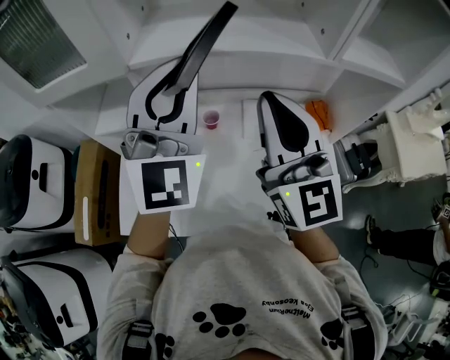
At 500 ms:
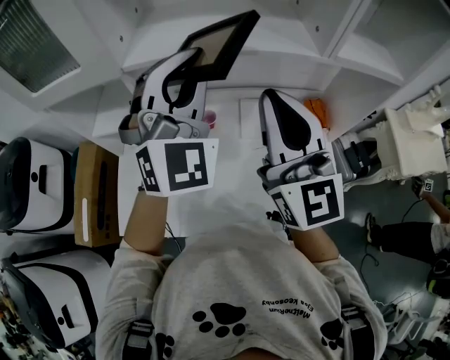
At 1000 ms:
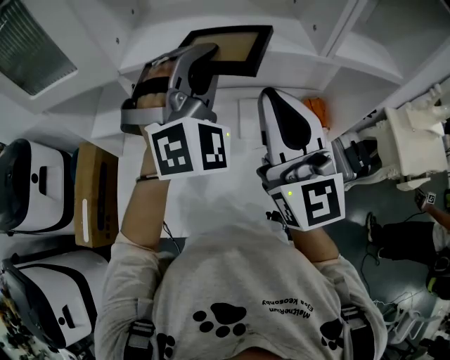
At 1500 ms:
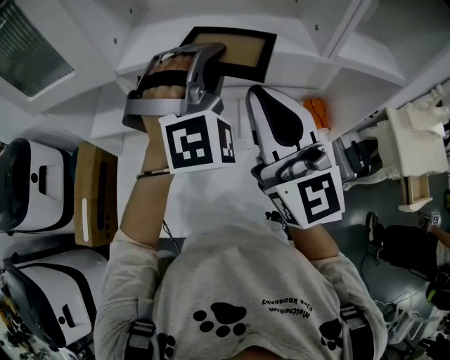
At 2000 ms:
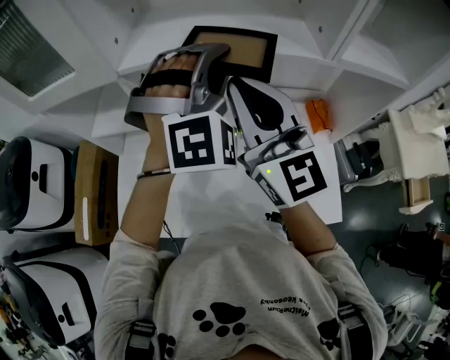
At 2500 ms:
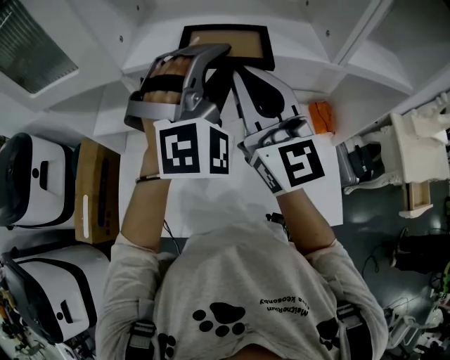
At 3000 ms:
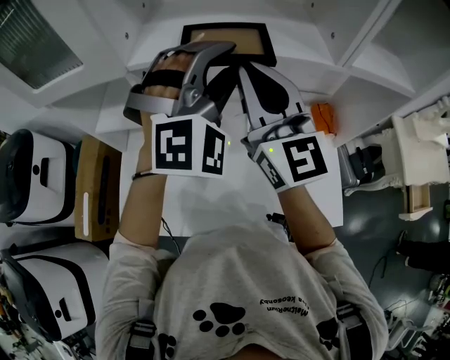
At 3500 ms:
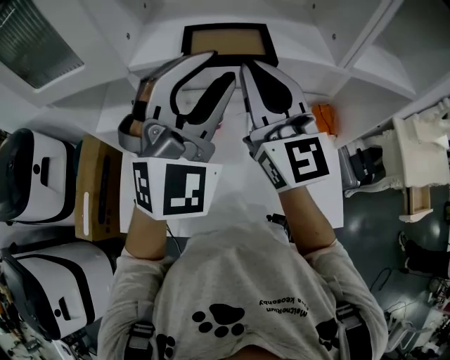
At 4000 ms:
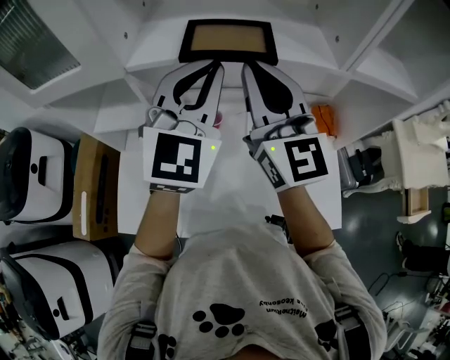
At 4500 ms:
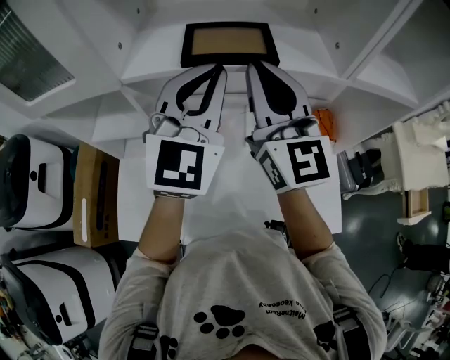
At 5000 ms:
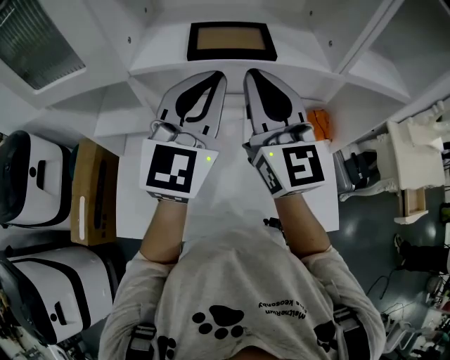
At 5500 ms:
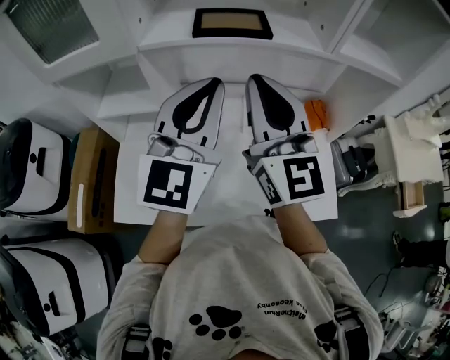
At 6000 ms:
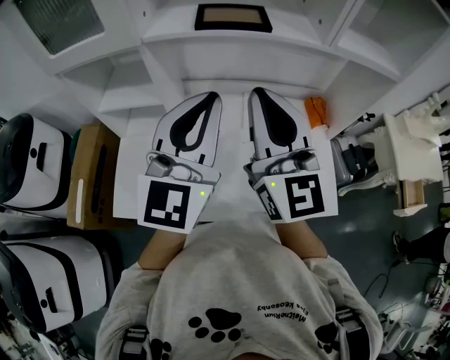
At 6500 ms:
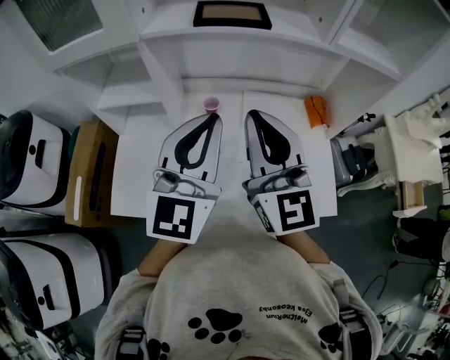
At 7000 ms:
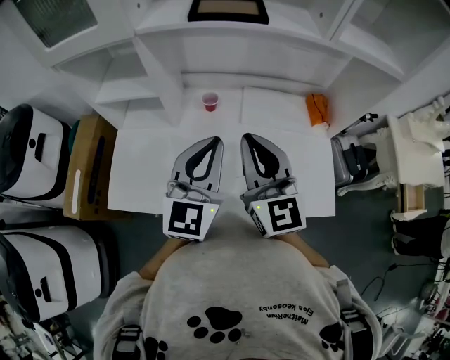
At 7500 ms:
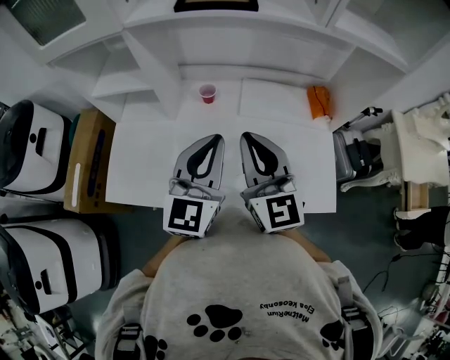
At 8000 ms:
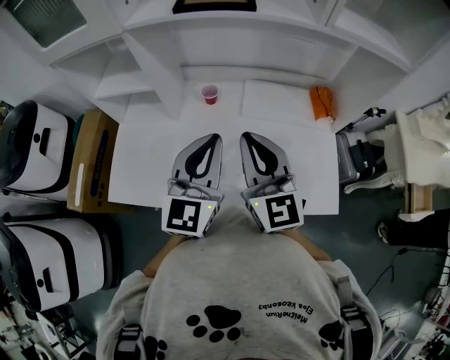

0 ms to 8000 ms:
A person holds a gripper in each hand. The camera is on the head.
0 ms to 2000 ms: The left gripper goes some 10 cm to the right, forward and downward, and turns by approximately 40 degrees.
2000 ms to 4000 ms: The left gripper changes place by some 5 cm, rotates around the line of its fingers by some 50 degrees, counterclockwise from behind, and opens, then closes again.
4000 ms to 6000 ms: The two grippers go approximately 15 cm backward. The left gripper rotates approximately 20 degrees.
6000 ms to 8000 ms: The grippers both shift downward by about 15 cm.

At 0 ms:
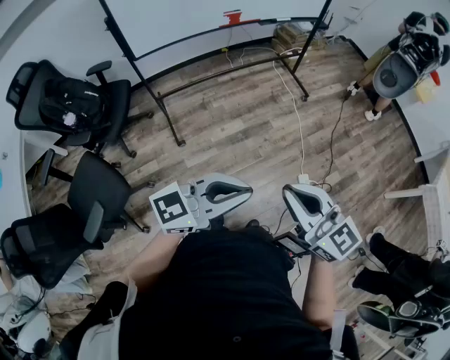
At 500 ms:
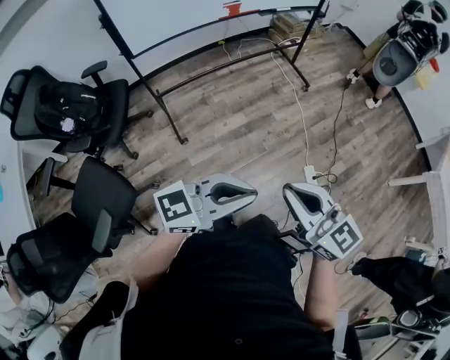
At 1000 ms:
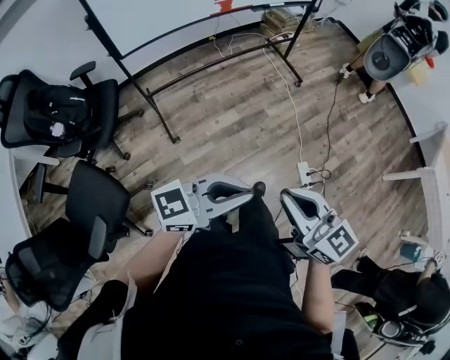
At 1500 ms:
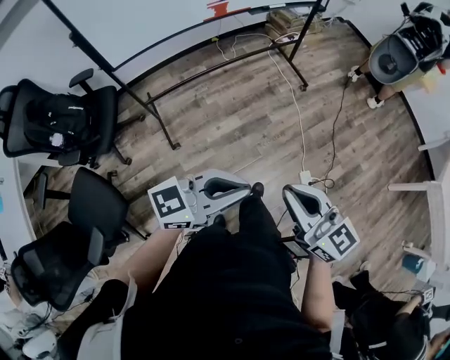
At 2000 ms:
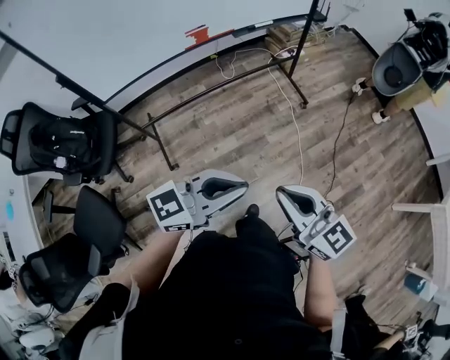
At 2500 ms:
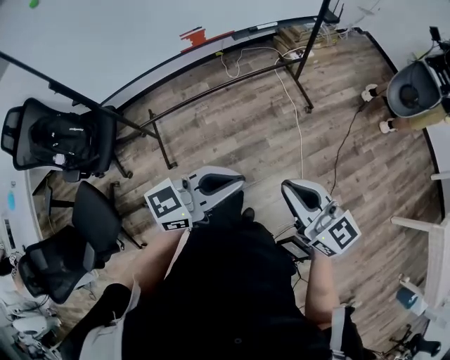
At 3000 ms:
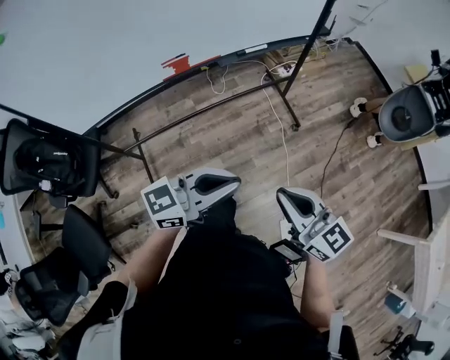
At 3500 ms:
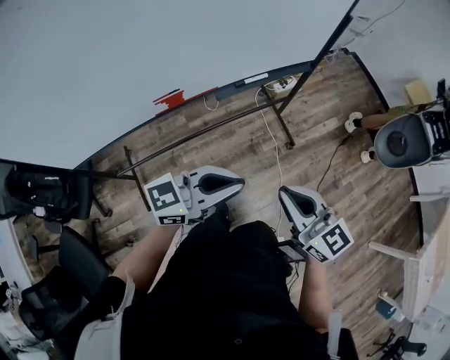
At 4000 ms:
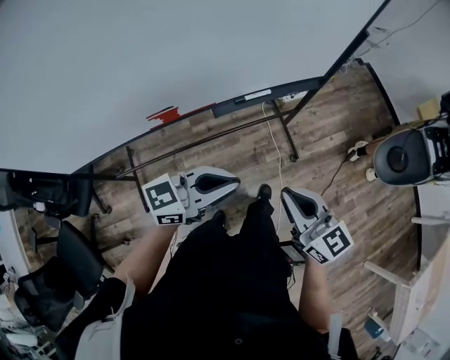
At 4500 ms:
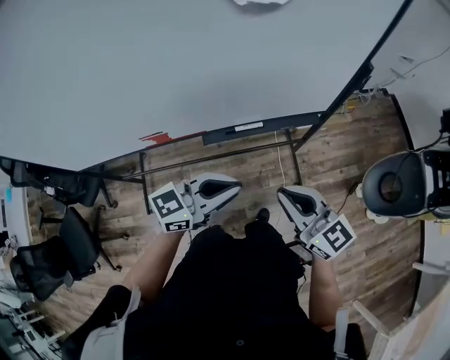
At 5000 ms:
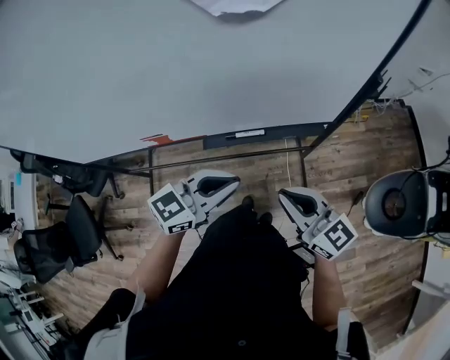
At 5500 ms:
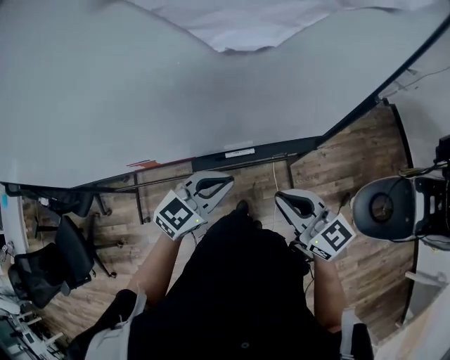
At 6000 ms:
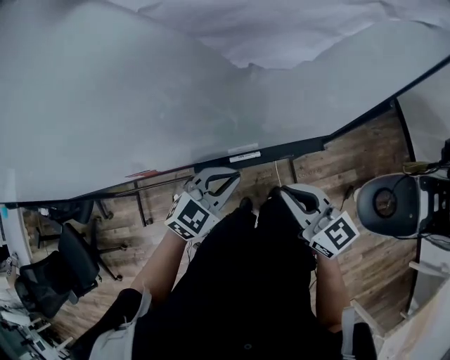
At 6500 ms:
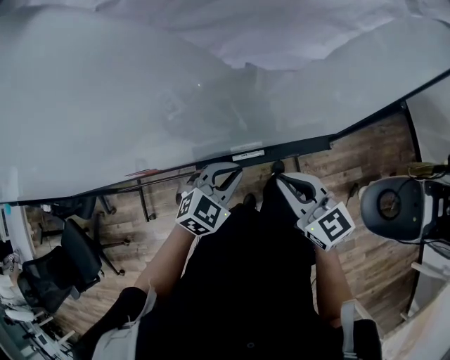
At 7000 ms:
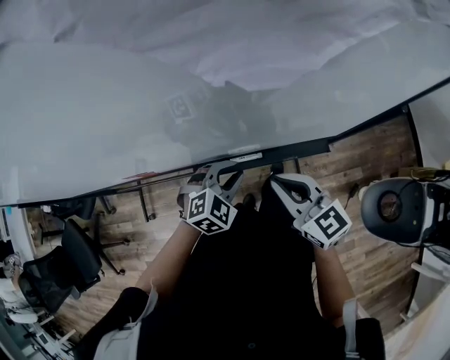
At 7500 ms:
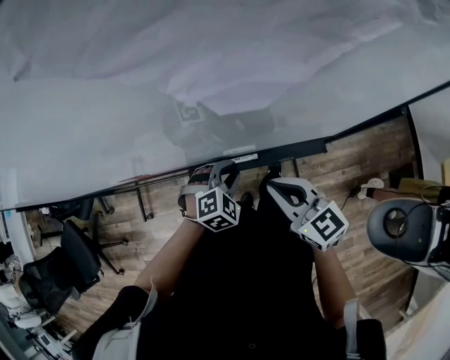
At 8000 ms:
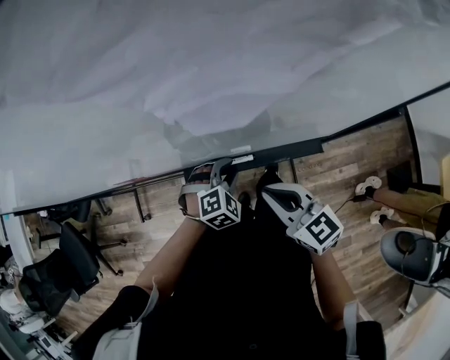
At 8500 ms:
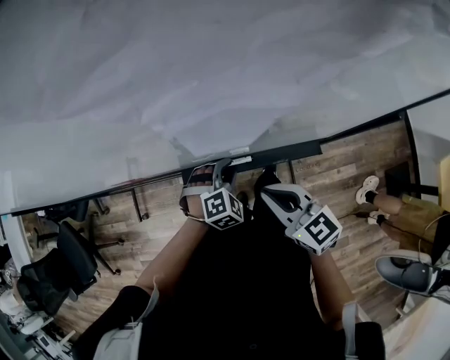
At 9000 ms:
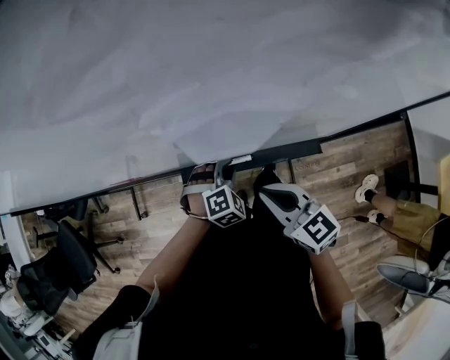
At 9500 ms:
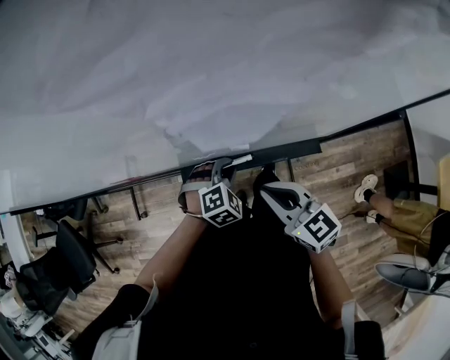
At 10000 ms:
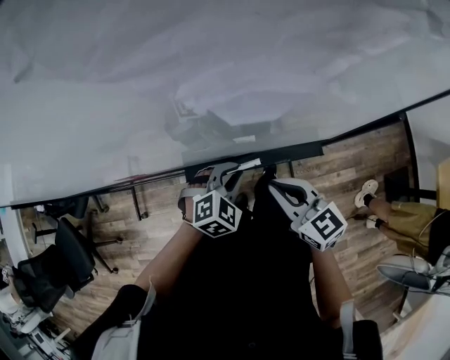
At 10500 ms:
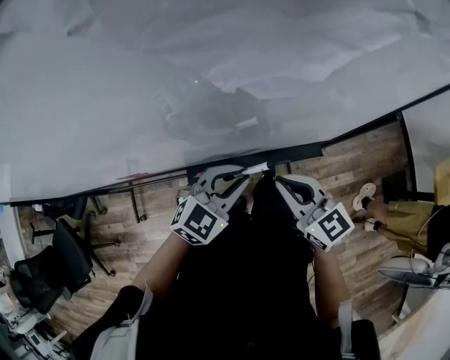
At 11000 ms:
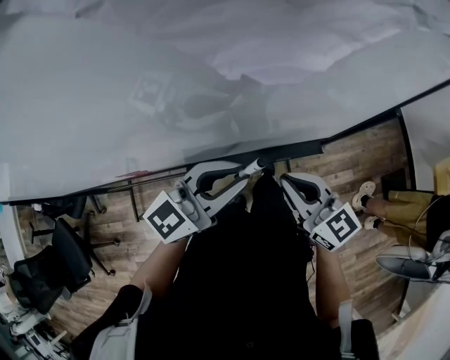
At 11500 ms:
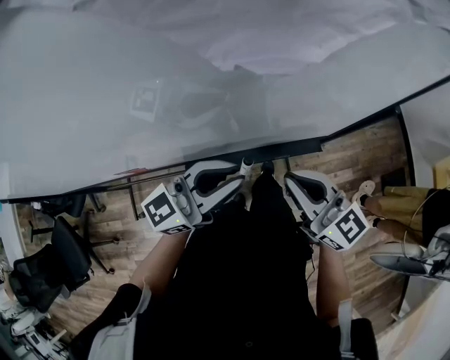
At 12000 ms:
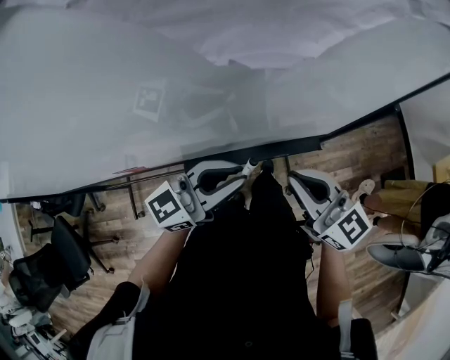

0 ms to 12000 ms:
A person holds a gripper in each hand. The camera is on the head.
0 ms to 2000 ms: Both grippers move forward, about 25 cm.
2000 ms to 4000 ms: The two grippers travel together, forward, approximately 50 cm.
4000 ms to 6000 ms: Both grippers travel together forward, roughly 25 cm. The left gripper swivels some 50 degrees.
6000 ms to 8000 ms: The left gripper is displaced downward by some 15 cm, rotates approximately 40 degrees, and opens up. Meanwhile the right gripper ends up approximately 5 cm from where it was.
8000 ms to 10000 ms: There are only small adjustments of the grippers.
10000 ms to 12000 ms: The left gripper shifts approximately 15 cm upward, and points its fingers about 60 degrees further upward. Meanwhile the right gripper is displaced upward by approximately 5 cm.

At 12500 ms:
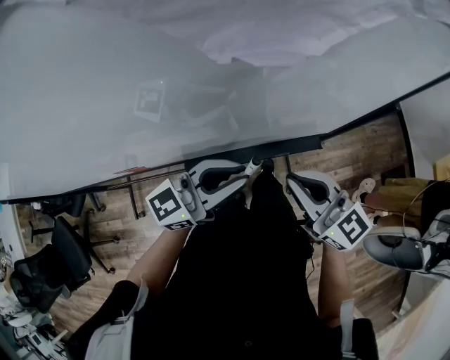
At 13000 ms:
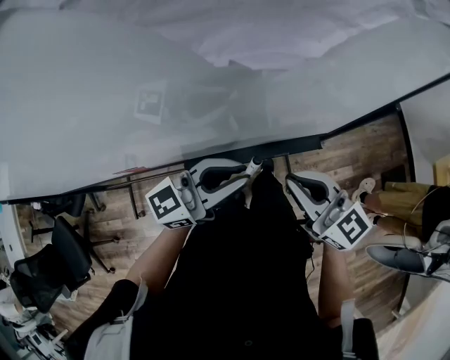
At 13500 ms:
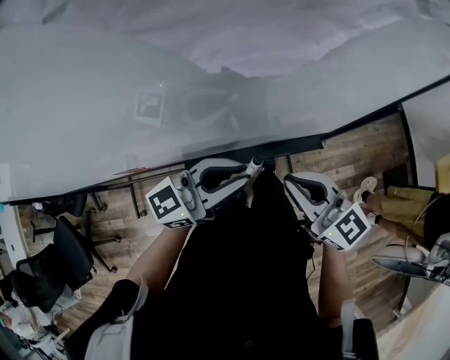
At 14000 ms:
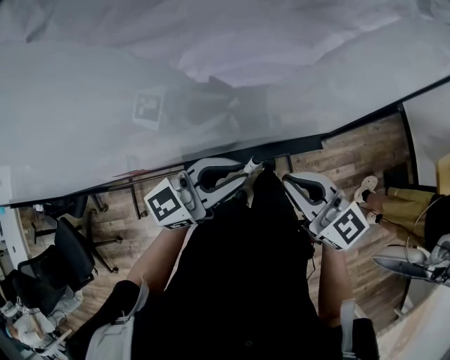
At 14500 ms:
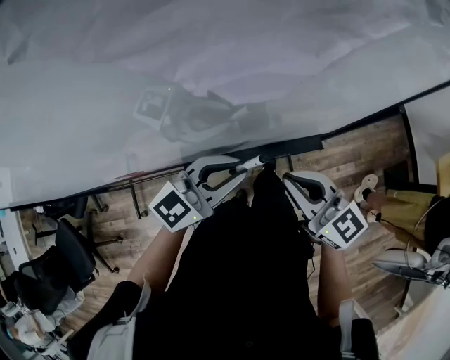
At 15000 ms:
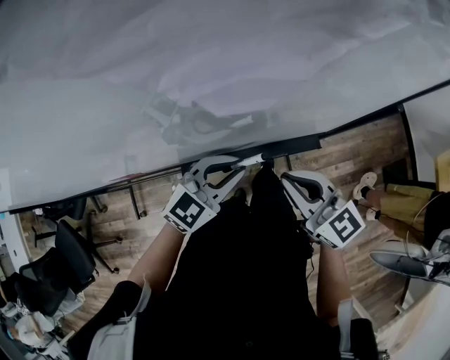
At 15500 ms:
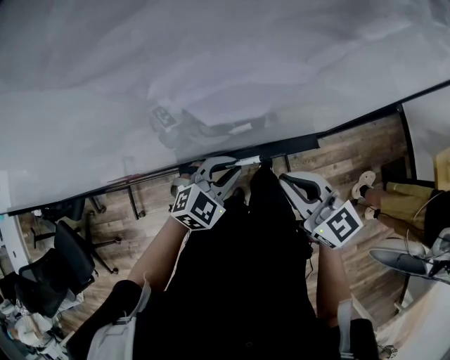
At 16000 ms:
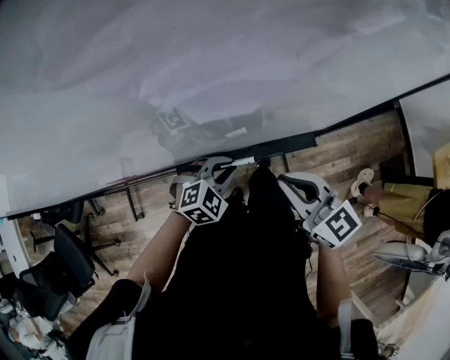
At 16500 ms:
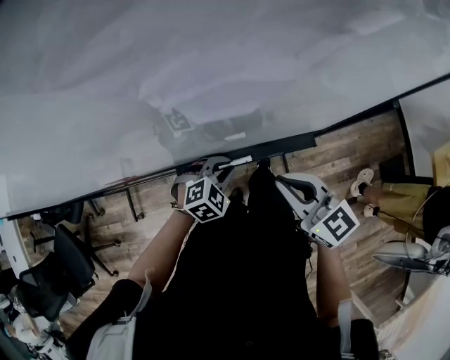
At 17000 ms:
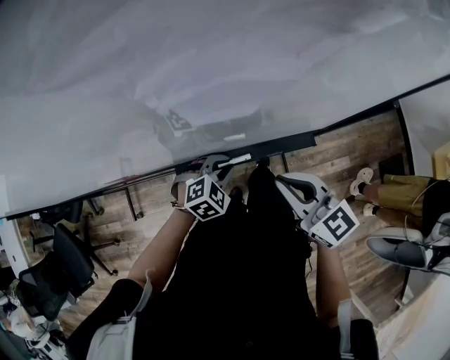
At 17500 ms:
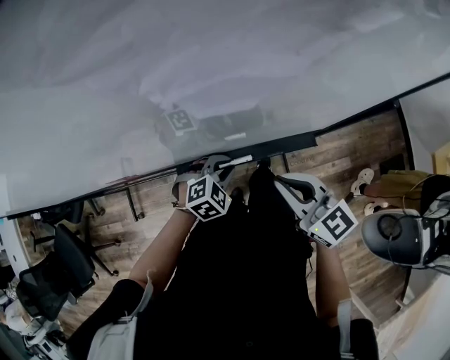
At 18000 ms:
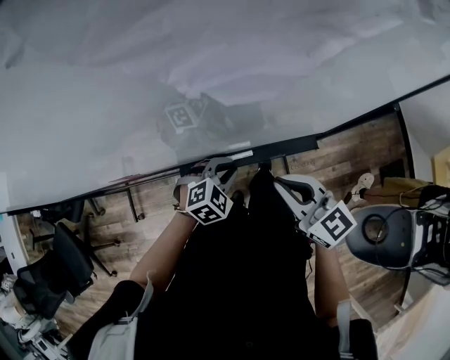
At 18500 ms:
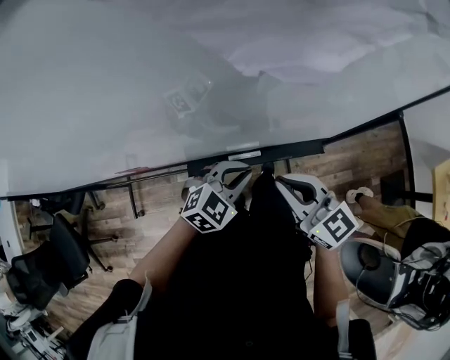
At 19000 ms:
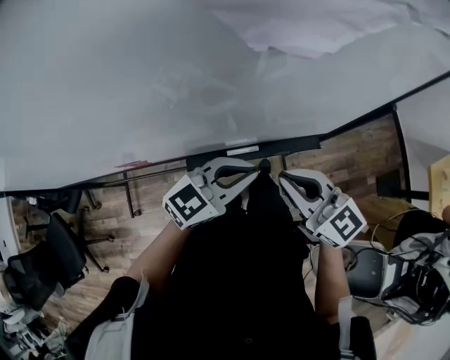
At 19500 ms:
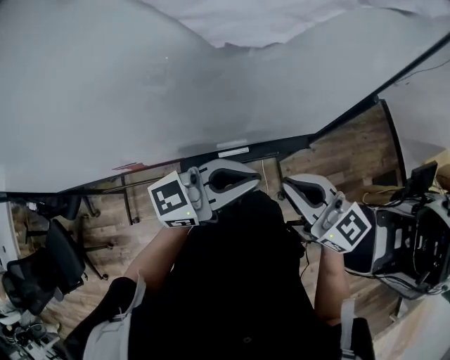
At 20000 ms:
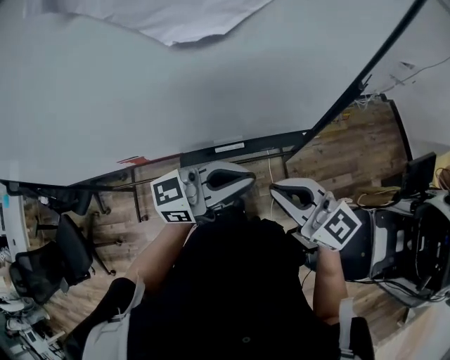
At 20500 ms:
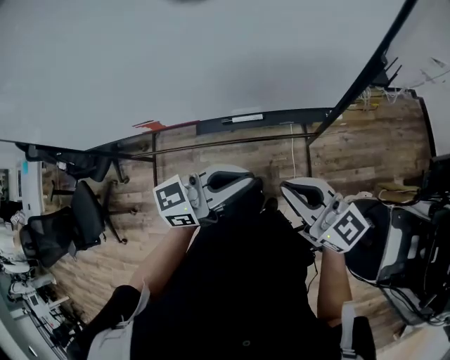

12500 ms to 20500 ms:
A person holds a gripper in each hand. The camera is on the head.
12500 ms to 14500 ms: The left gripper swivels roughly 20 degrees.
14500 ms to 16500 ms: The left gripper is displaced downward by roughly 20 cm, and tilts its fingers about 50 degrees downward.
16500 ms to 18500 ms: The left gripper heads upward, covering some 10 cm.
18500 ms to 20500 ms: The left gripper shifts by approximately 20 cm, and points its fingers approximately 40 degrees further upward. Meanwhile the right gripper changes place by roughly 15 cm.
